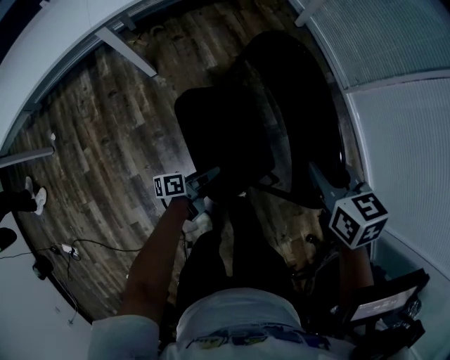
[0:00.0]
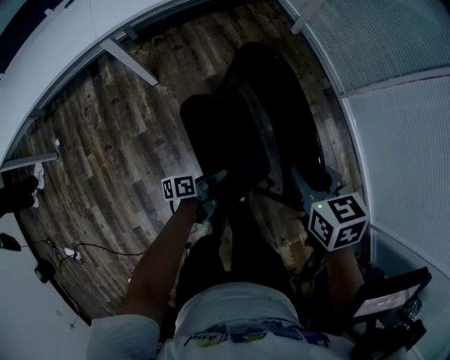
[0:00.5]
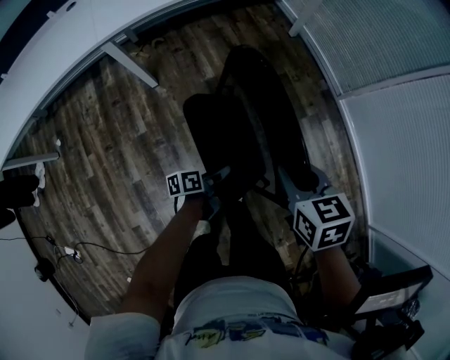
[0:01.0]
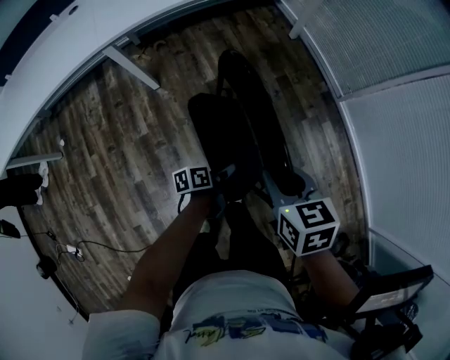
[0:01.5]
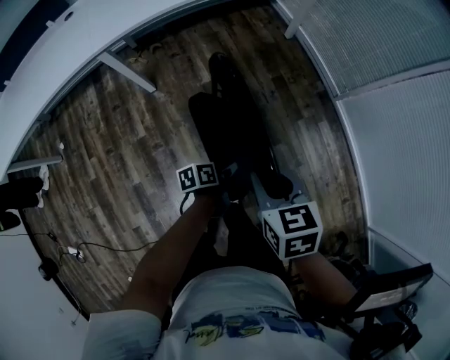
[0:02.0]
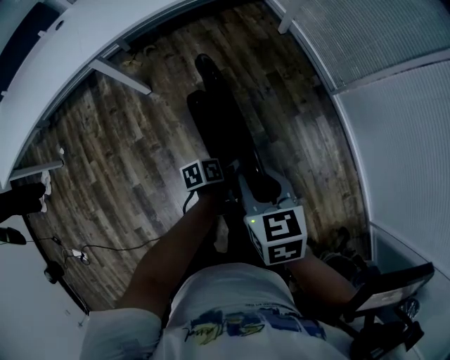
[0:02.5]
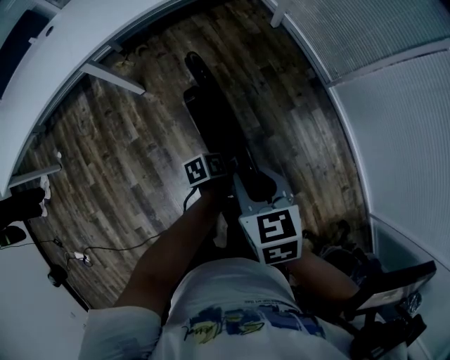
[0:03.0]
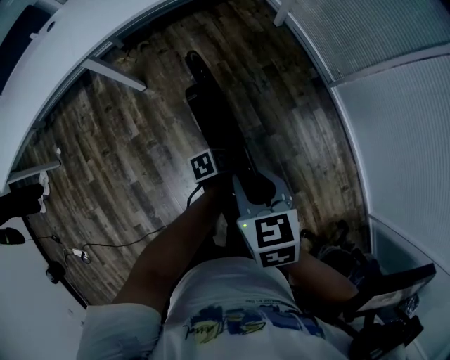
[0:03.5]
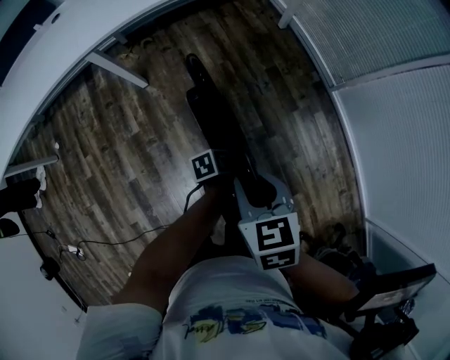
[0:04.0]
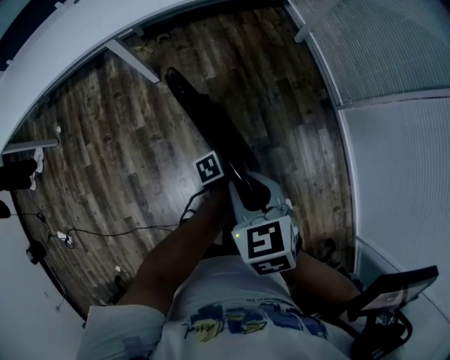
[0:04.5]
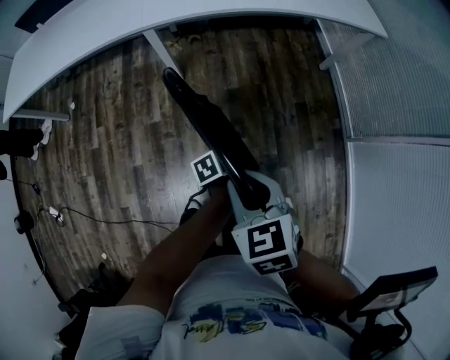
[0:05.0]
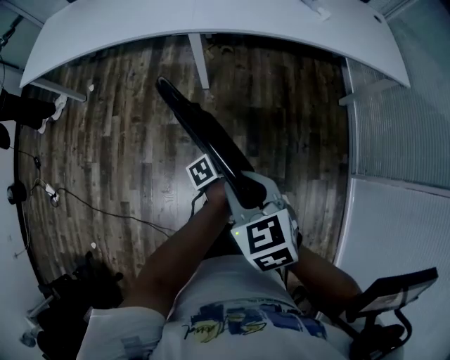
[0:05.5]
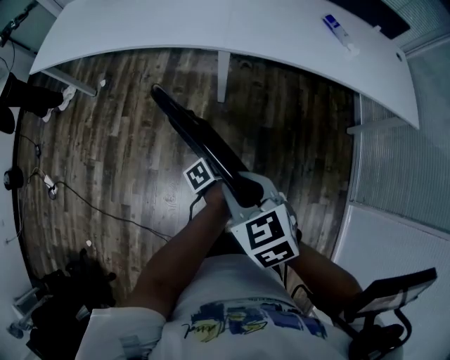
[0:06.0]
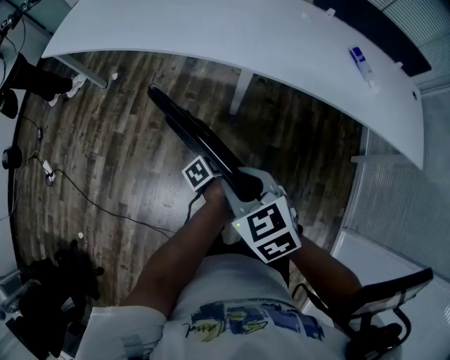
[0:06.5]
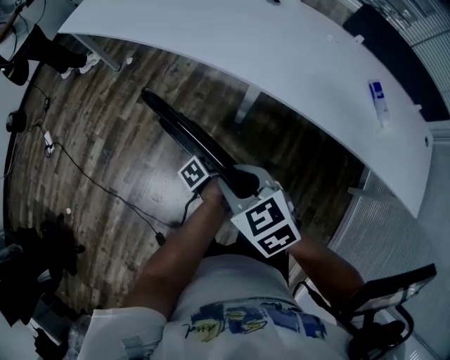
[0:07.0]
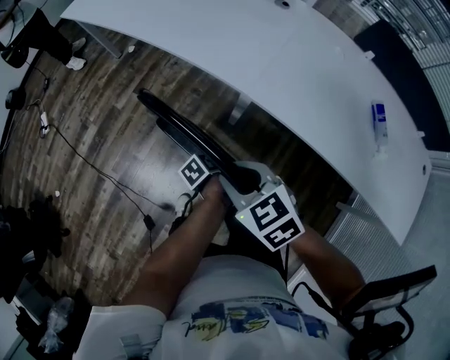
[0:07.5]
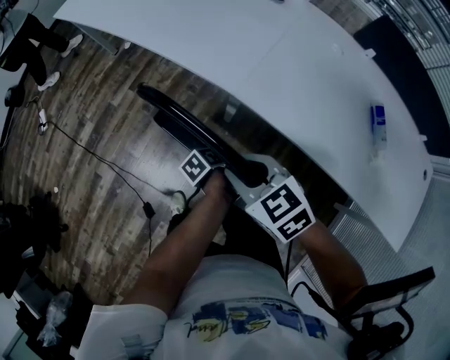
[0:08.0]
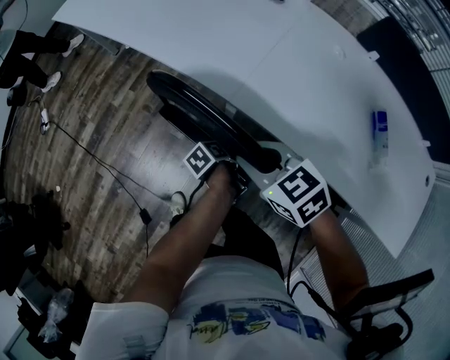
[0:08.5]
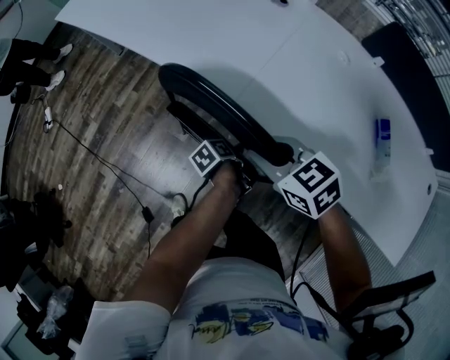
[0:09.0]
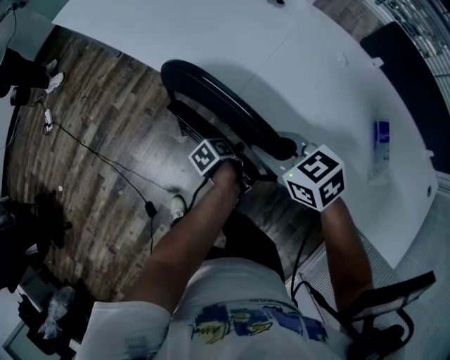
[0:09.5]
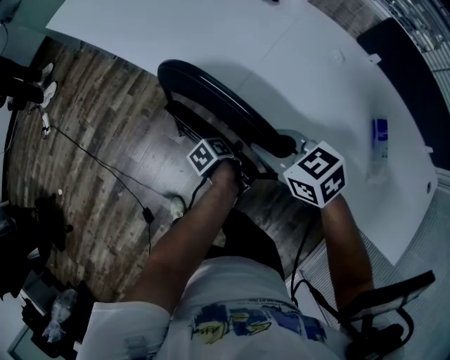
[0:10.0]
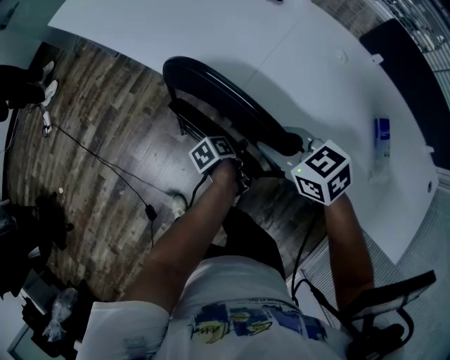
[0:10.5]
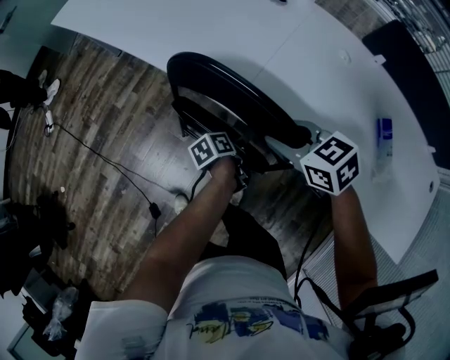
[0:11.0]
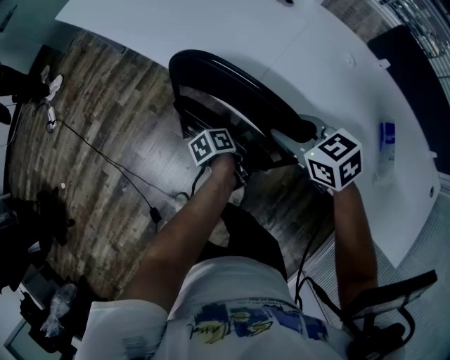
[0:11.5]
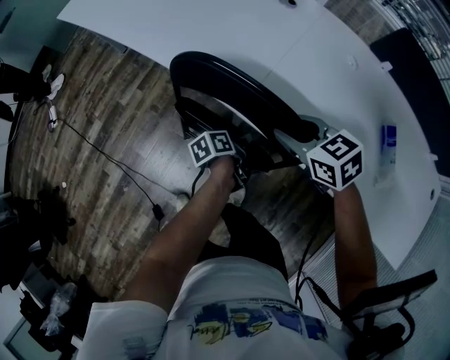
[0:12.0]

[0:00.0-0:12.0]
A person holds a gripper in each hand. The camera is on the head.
0:00.0 to 0:02.0: The right gripper changes place by about 5 cm. The left gripper is displaced to the right, upward and forward by approximately 15 cm, and changes its angle by roughly 20 degrees.
0:02.0 to 0:04.0: The grippers move only a little.
0:04.0 to 0:06.0: The right gripper changes place by approximately 35 cm, and turns by about 50 degrees, while the left gripper shifts by roughly 35 cm, and turns by roughly 50 degrees.
0:06.0 to 0:08.0: The right gripper shifts by roughly 25 cm, and rotates approximately 40 degrees. The left gripper changes place by approximately 25 cm, and turns by some 40 degrees.
0:08.0 to 0:10.0: Both grippers move to the right and forward, some 15 cm.
0:10.0 to 0:12.0: The grippers move only a little.

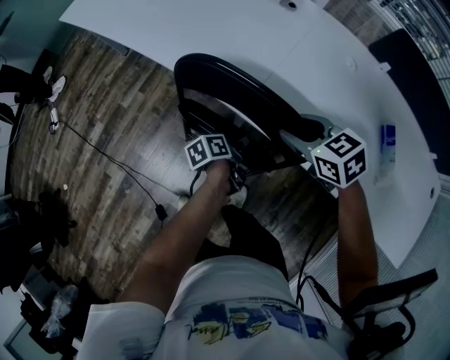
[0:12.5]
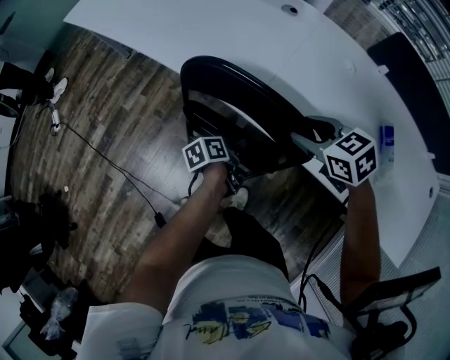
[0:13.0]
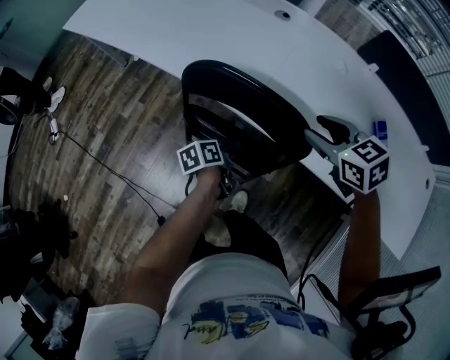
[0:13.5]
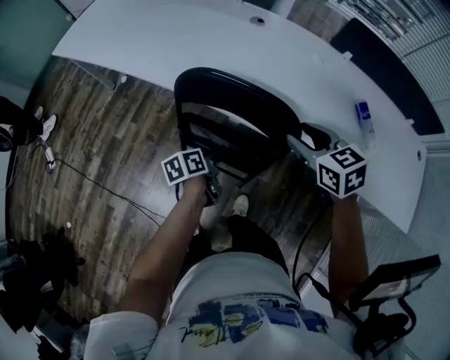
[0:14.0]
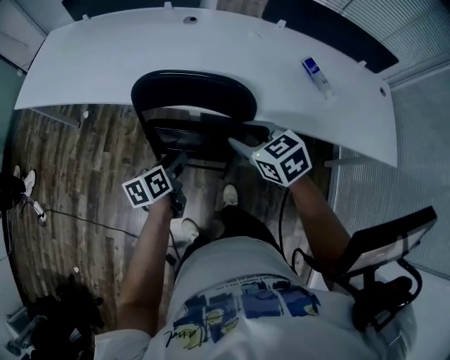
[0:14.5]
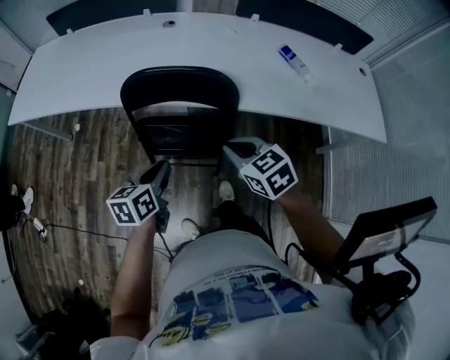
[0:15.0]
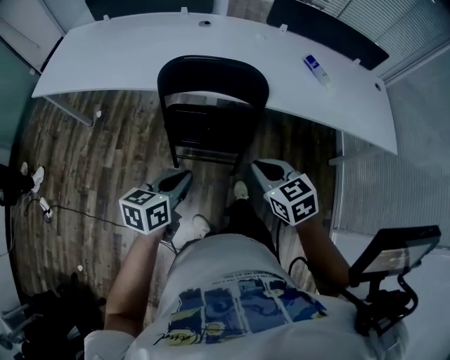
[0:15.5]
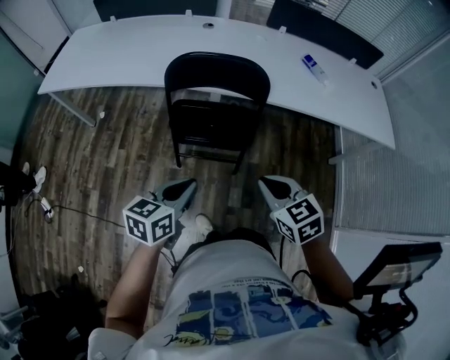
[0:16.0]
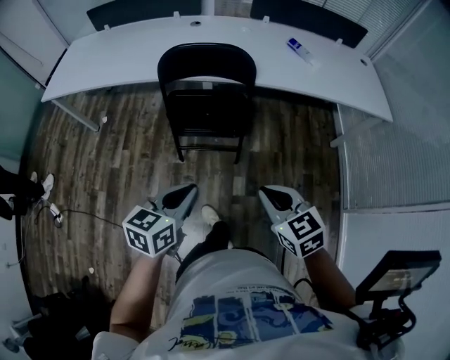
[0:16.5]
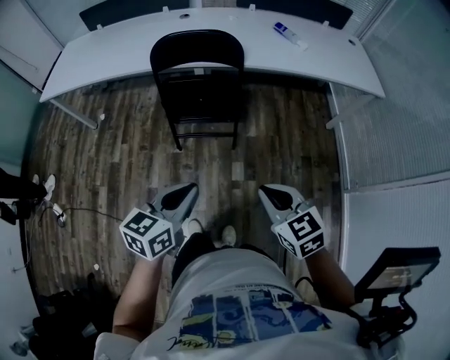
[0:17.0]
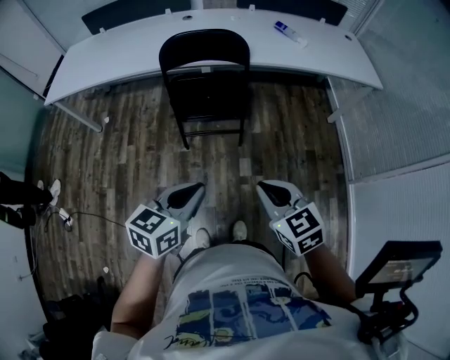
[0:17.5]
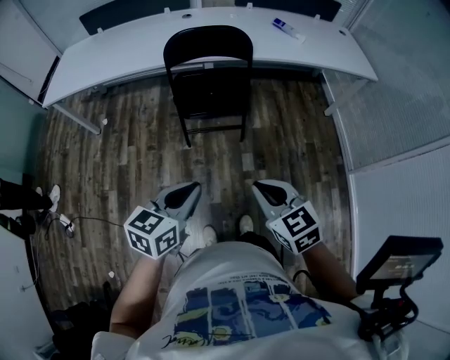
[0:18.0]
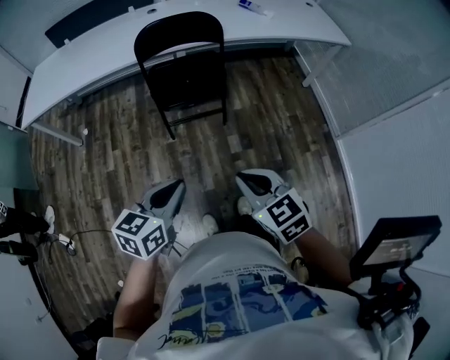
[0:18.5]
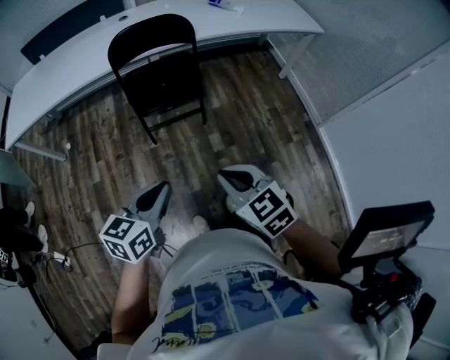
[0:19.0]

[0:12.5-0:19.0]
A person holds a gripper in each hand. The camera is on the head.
0:12.5 to 0:14.5: The right gripper heads backward and upward, covering some 15 cm, and rotates about 20 degrees; the left gripper goes roughly 20 cm upward and to the left, and changes its angle by some 40 degrees.
0:14.5 to 0:17.0: Both grippers are carried backward, roughly 50 cm. The left gripper rotates about 40 degrees, and closes. Meanwhile the right gripper closes up.
0:17.0 to 0:19.0: Both grippers travel together to the left and backward, some 15 cm.

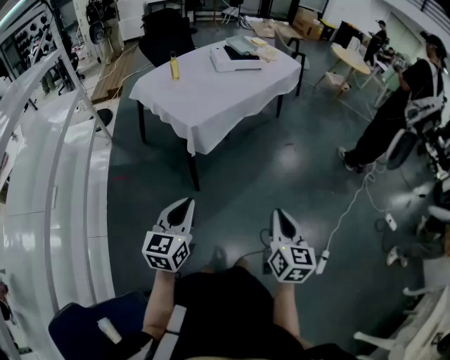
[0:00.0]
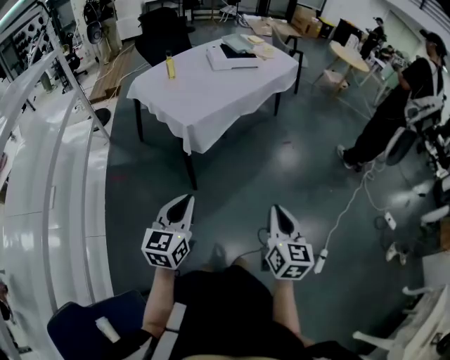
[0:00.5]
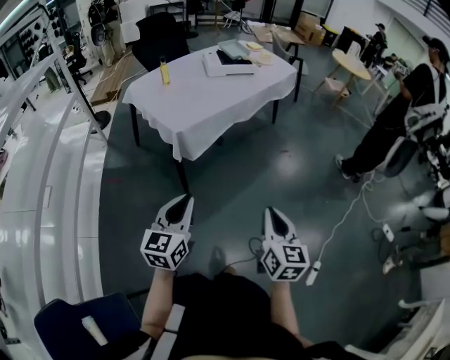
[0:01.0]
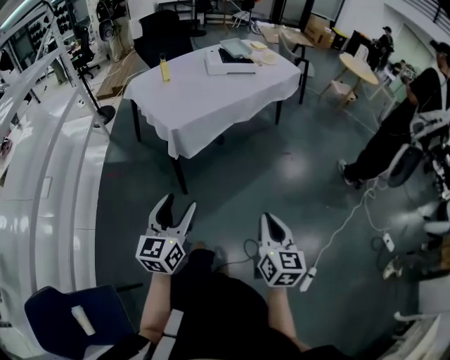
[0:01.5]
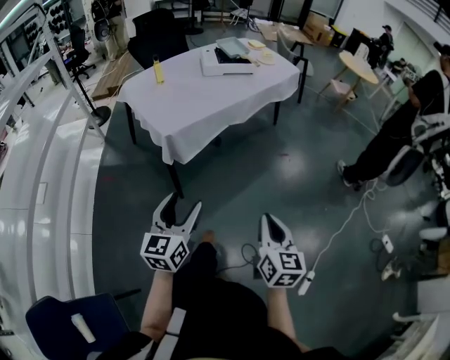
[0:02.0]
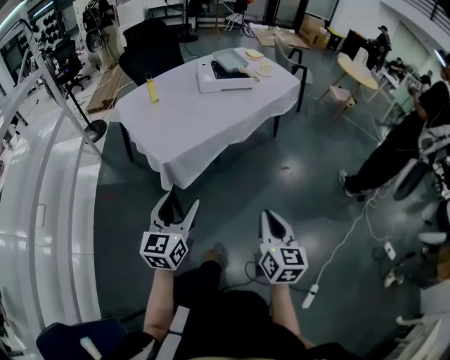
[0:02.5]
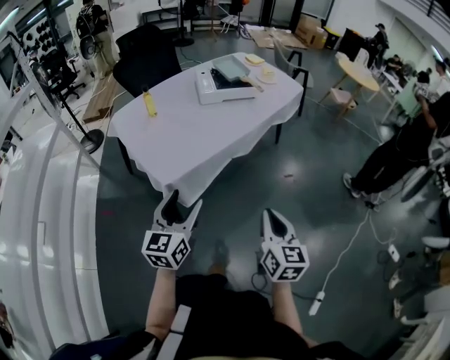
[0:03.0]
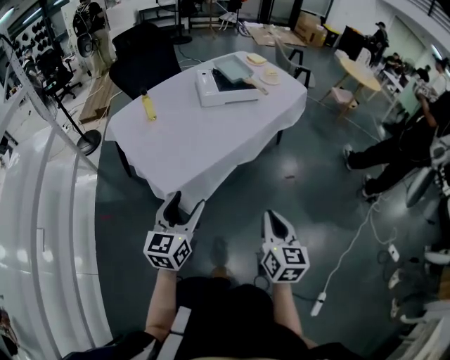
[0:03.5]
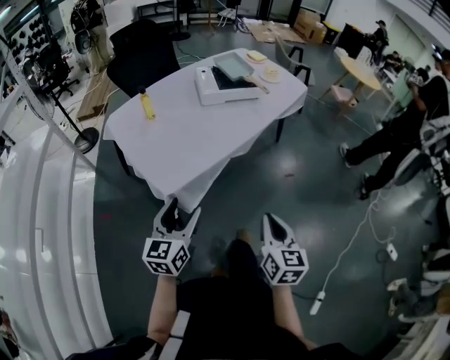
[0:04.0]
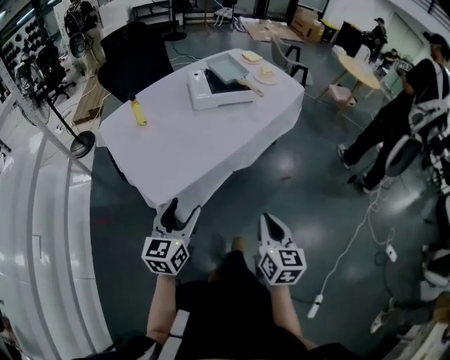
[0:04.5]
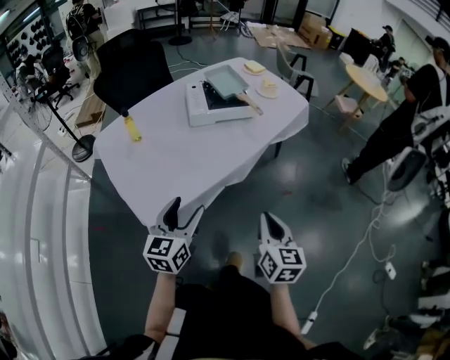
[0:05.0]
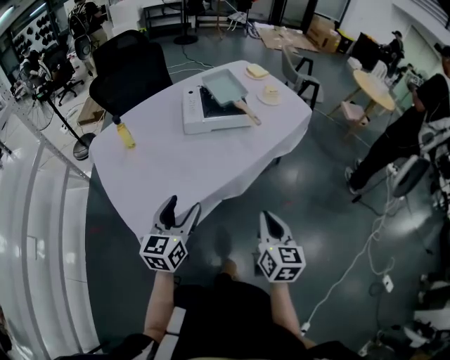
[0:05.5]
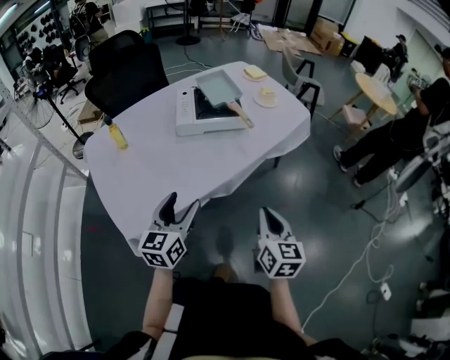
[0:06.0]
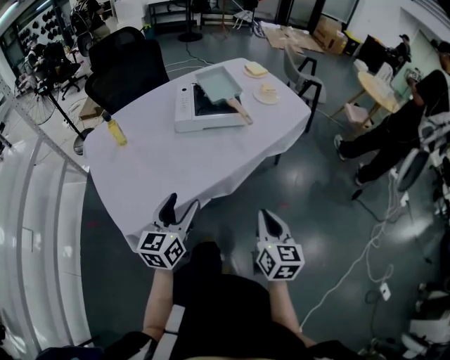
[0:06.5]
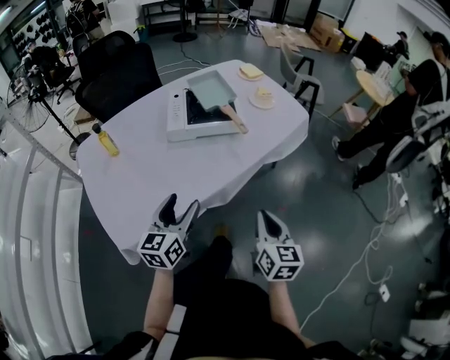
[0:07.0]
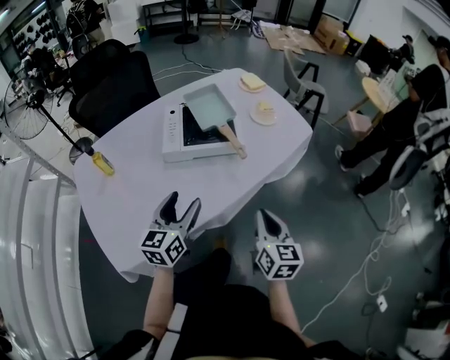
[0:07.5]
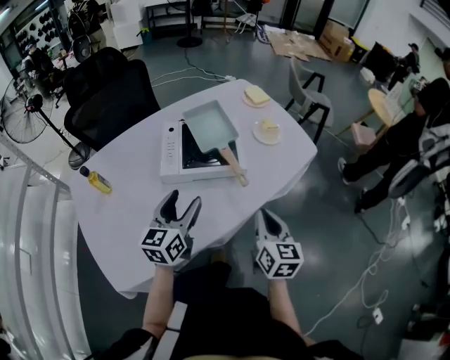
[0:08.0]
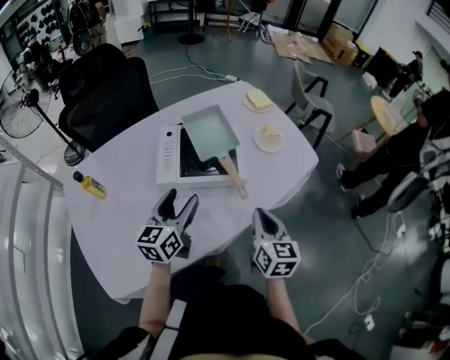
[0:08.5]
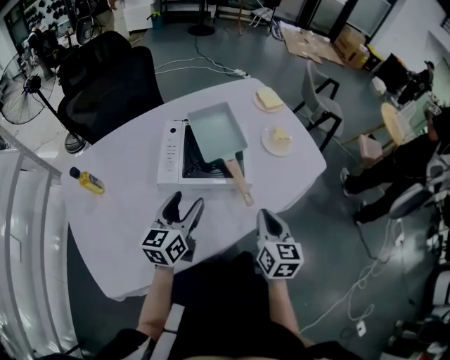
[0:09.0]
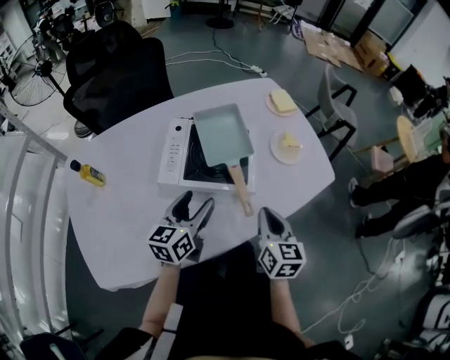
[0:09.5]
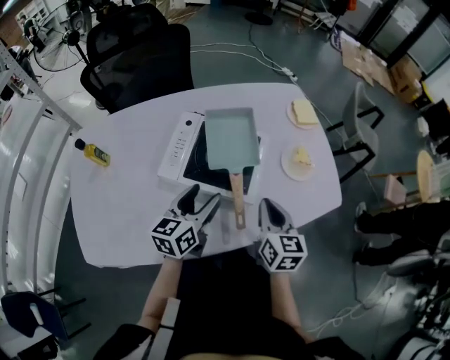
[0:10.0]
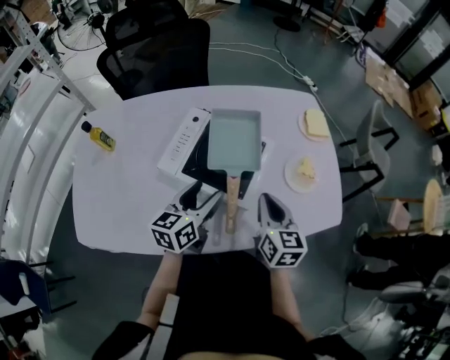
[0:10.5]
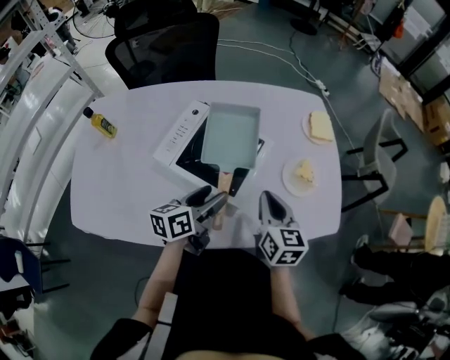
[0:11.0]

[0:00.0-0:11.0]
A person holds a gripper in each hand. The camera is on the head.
0:00.0 to 0:02.0: The right gripper is displaced forward and to the right by some 15 cm. Meanwhile the left gripper travels to the right and forward by about 20 cm, and opens up.
0:02.0 to 0:03.5: The grippers both shift forward by about 30 cm.
0:03.5 to 0:05.5: Both grippers move forward, approximately 25 cm.
0:05.5 to 0:07.5: Both grippers move forward, roughly 20 cm.
0:07.5 to 0:09.0: Both grippers move forward, roughly 20 cm.
0:09.0 to 0:11.0: The right gripper is displaced forward by some 20 cm, and rotates approximately 30 degrees; the left gripper moves to the right, forward and downward, about 15 cm, and turns by roughly 30 degrees.
